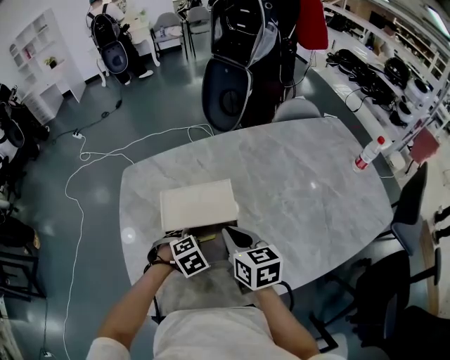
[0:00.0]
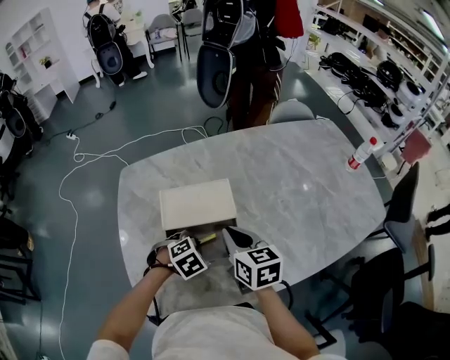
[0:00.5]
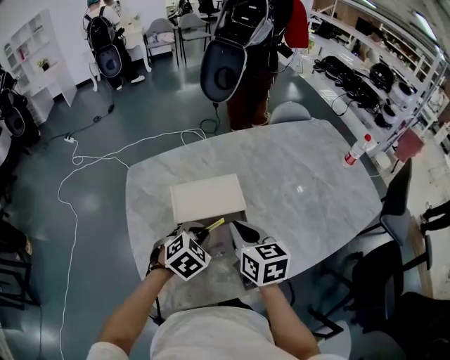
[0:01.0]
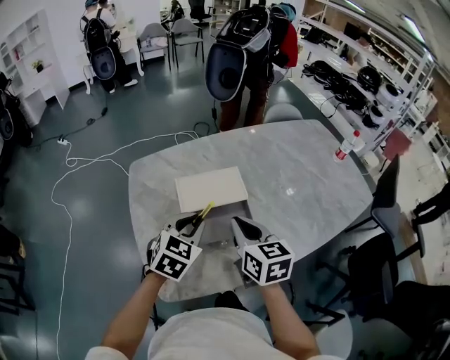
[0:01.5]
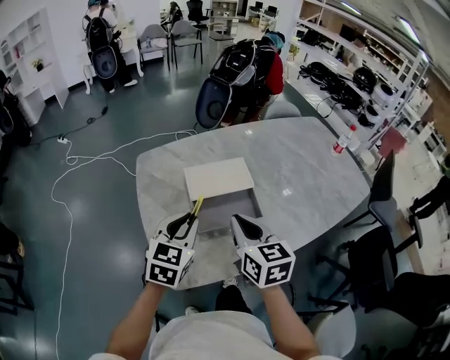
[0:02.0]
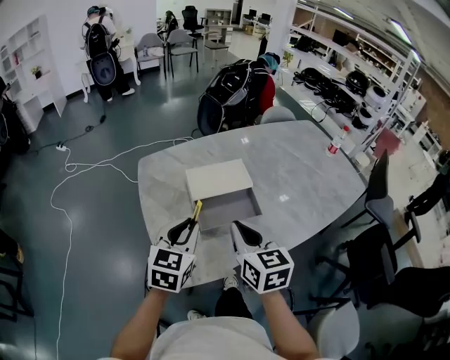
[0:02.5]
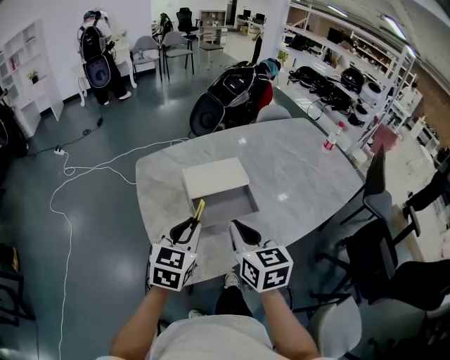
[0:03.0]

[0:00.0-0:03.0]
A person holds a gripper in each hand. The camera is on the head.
0:00.0 to 0:01.5: The left gripper moves upward, roughly 20 cm, and points its fingers some 40 degrees further upward; the right gripper moves about 10 cm.
0:01.5 to 0:03.0: Both grippers travel together backward, approximately 10 cm.

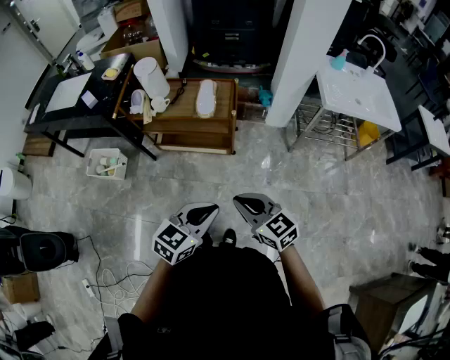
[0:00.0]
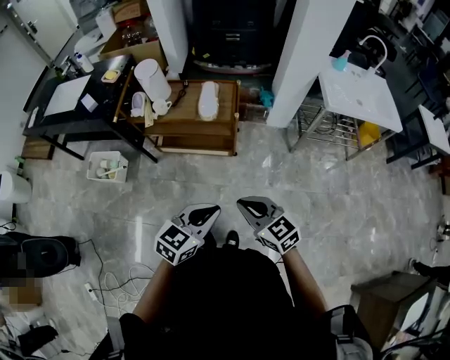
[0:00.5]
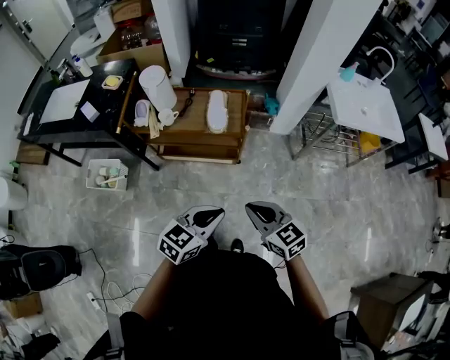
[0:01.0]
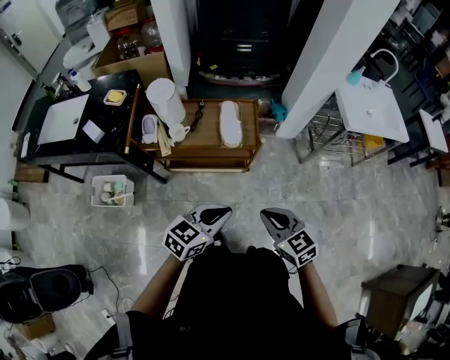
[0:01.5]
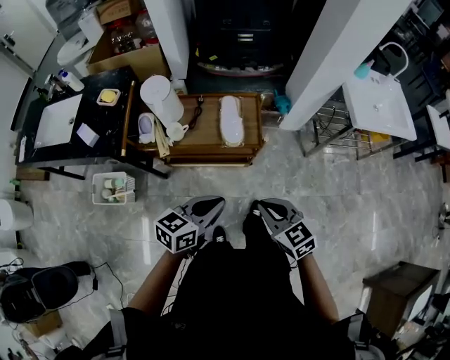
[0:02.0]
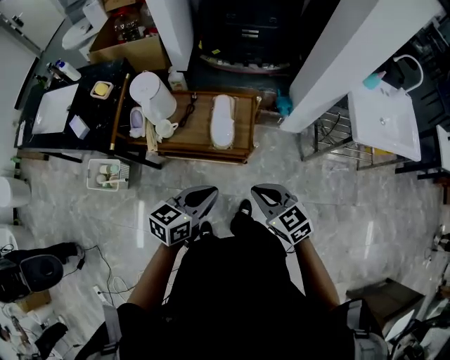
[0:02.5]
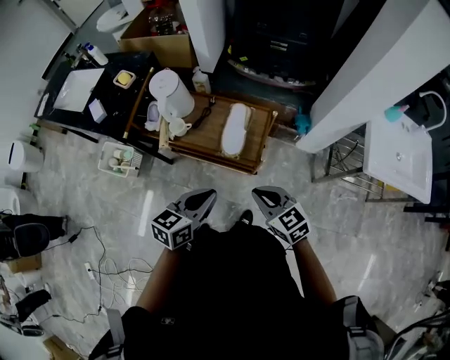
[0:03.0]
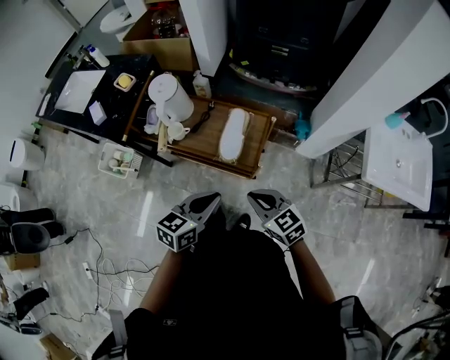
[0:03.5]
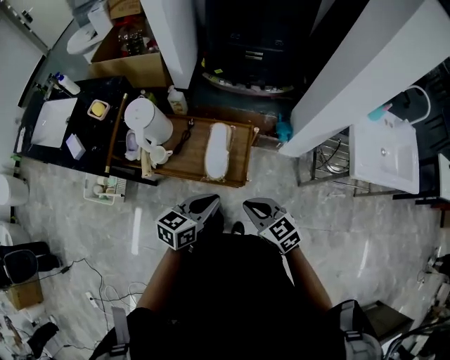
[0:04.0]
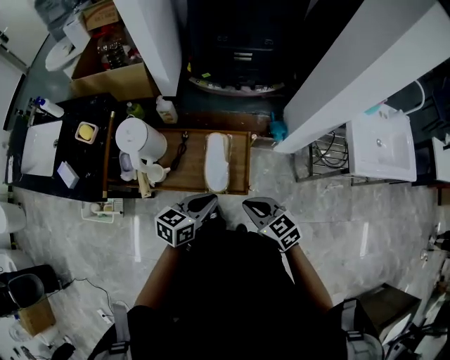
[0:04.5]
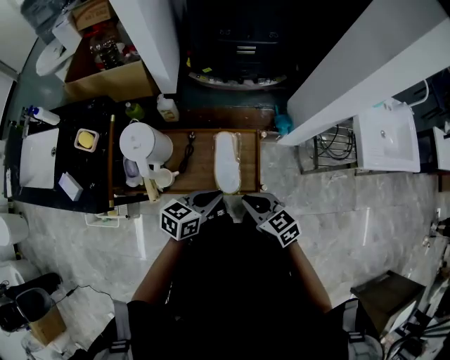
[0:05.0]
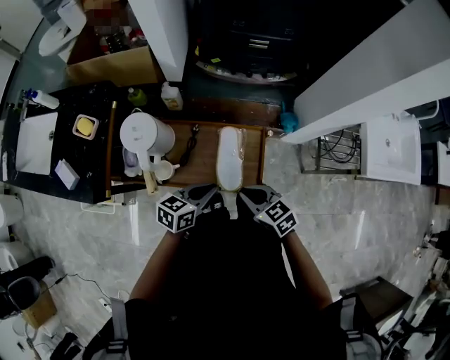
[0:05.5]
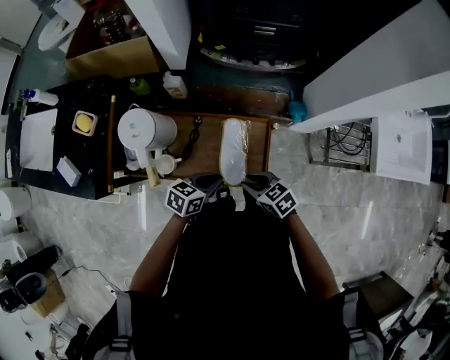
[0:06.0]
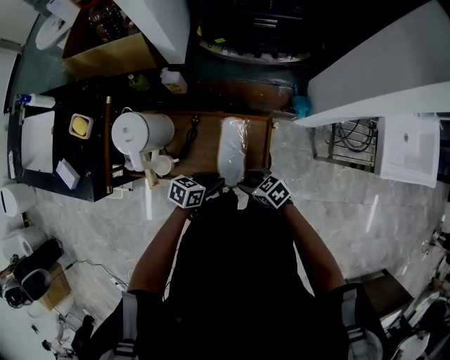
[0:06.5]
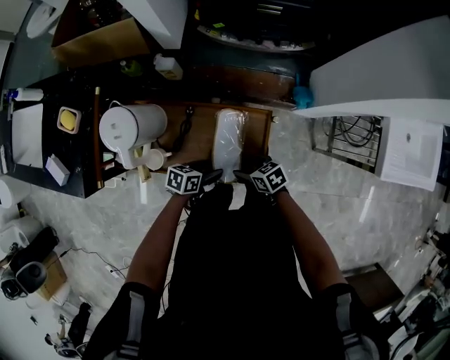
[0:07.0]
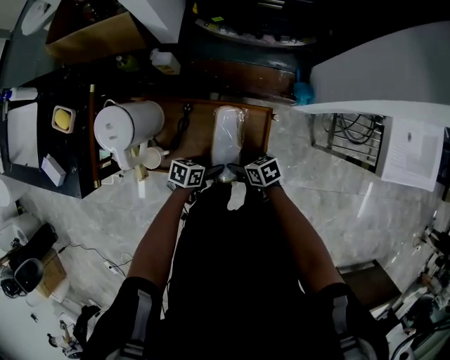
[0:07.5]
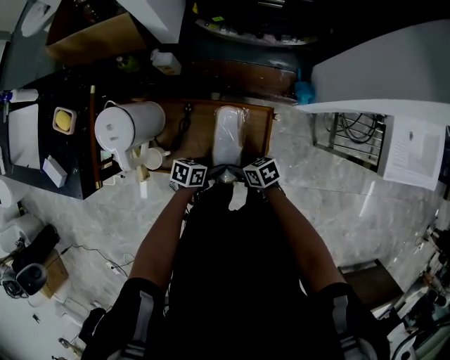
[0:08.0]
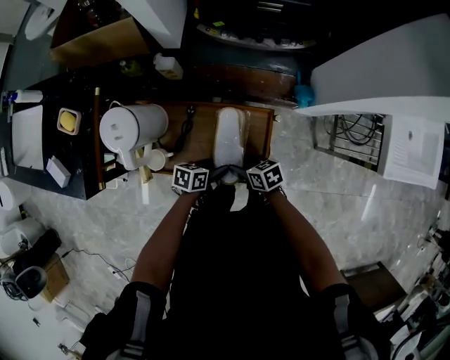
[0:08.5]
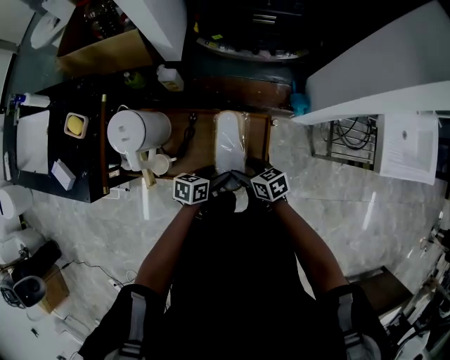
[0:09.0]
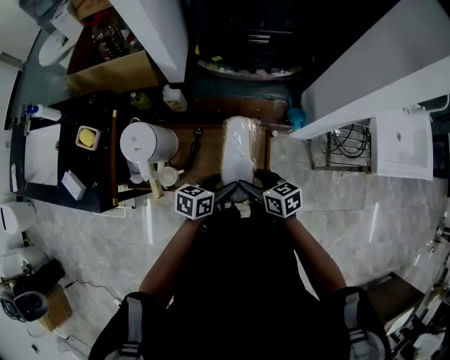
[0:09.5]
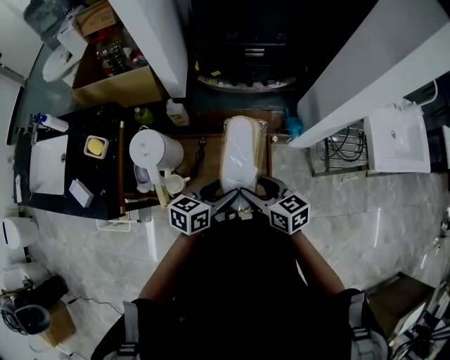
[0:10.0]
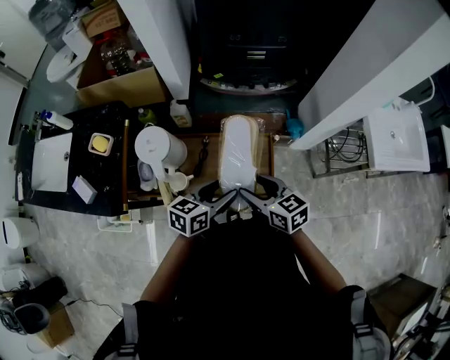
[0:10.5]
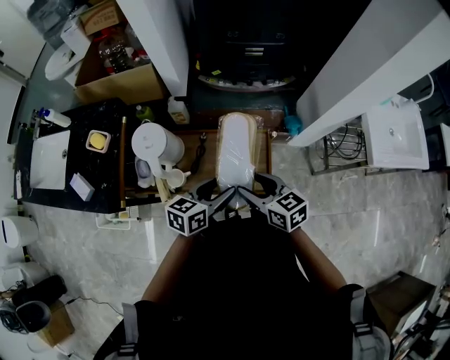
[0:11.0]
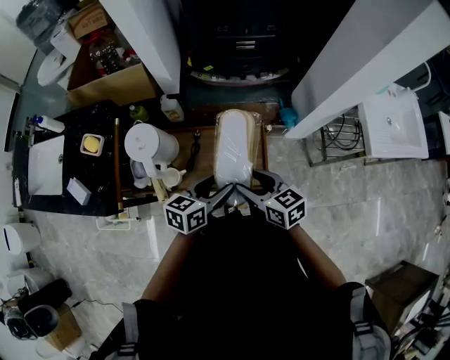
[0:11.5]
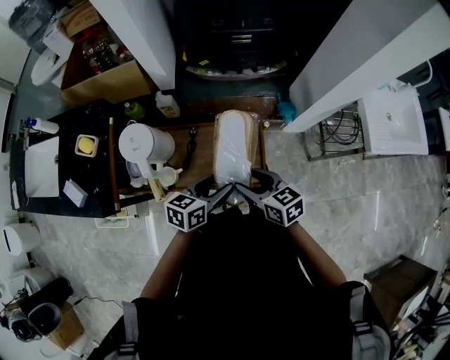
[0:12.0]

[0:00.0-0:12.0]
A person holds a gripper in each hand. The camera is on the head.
0:00.0 to 0:02.0: The grippers both shift forward and to the left by approximately 25 cm.
0:02.0 to 0:04.0: Both grippers travel together forward and to the right, some 20 cm.
0:04.0 to 0:06.0: The left gripper moves downward, approximately 15 cm, and turns by approximately 20 degrees. Meanwhile the right gripper moves about 20 cm.
0:06.0 to 0:08.0: The two grippers go some 15 cm downward. The right gripper swivels about 20 degrees, and opens its fingers, while the left gripper turns by about 20 degrees, and opens up.
0:08.0 to 0:10.0: The two grippers go approximately 25 cm upward. The right gripper swivels about 30 degrees. Meanwhile the left gripper changes its angle by some 30 degrees.
0:10.0 to 0:12.0: The grippers move only a little.

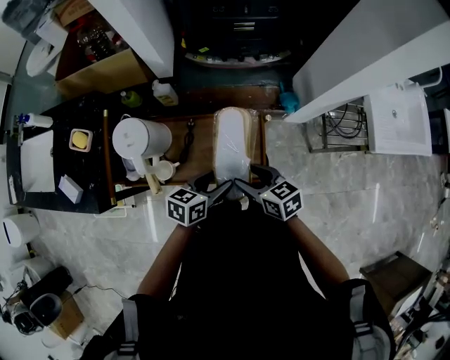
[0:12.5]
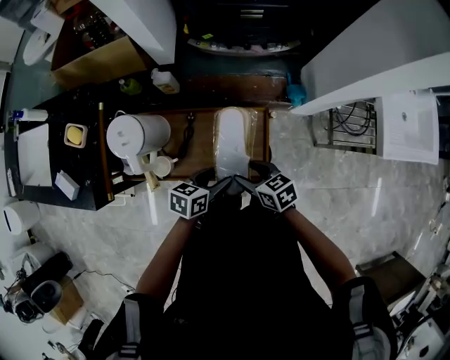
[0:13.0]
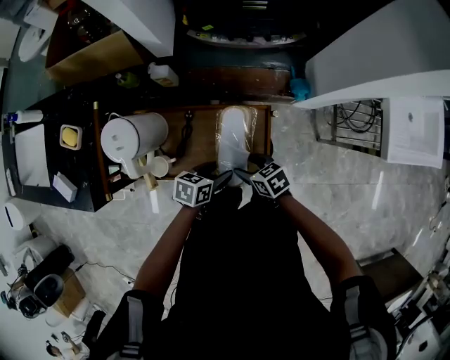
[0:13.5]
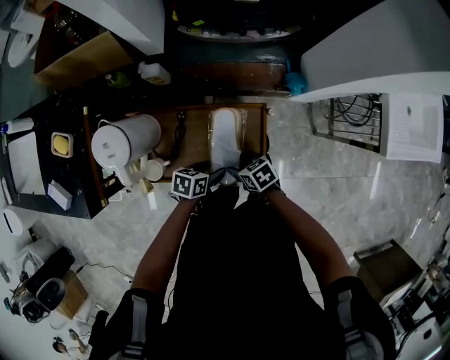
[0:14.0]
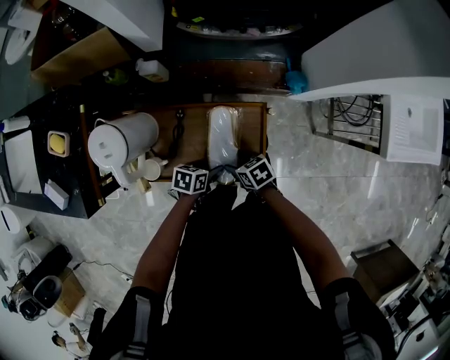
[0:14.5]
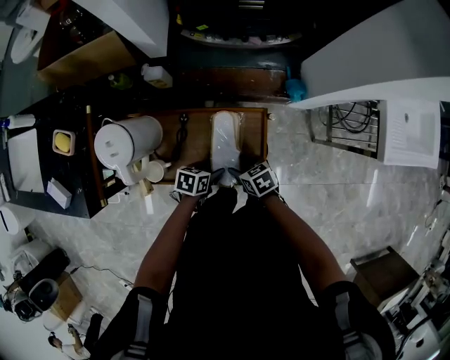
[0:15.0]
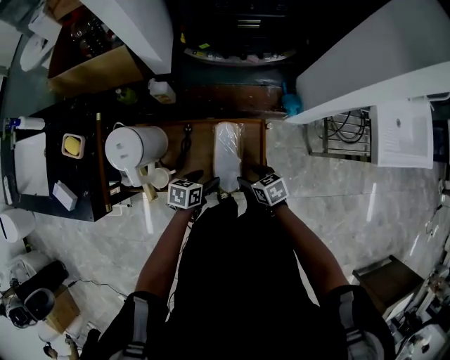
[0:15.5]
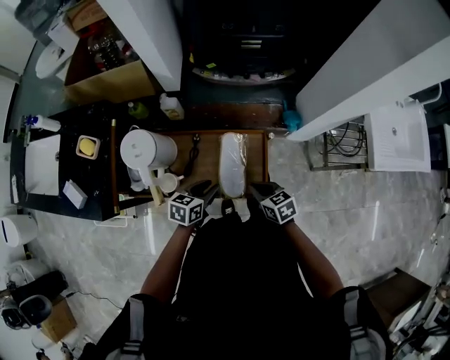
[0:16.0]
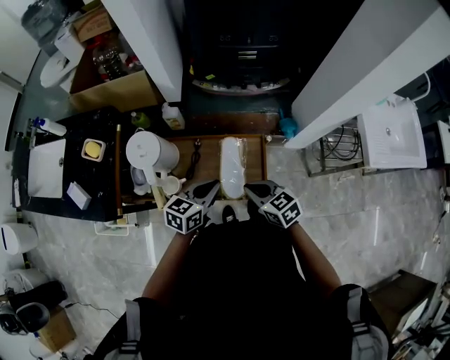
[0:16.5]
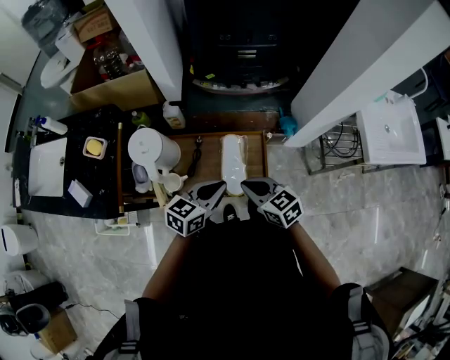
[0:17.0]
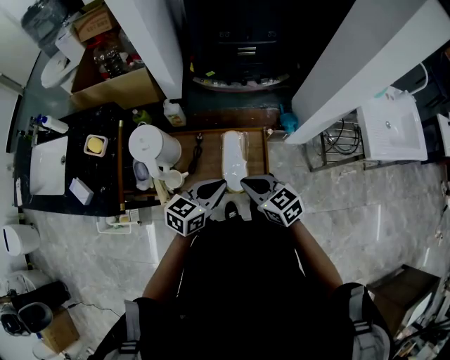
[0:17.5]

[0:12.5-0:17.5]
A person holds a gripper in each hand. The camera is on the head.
0:12.5 to 0:15.0: The grippers both shift downward by some 20 cm. The left gripper rotates about 20 degrees, while the right gripper turns by approximately 20 degrees.
0:15.0 to 0:17.5: The two grippers go some 25 cm upward. The right gripper turns by about 30 degrees, and closes its fingers. The left gripper angles its fingers upward, by roughly 30 degrees, and closes up.

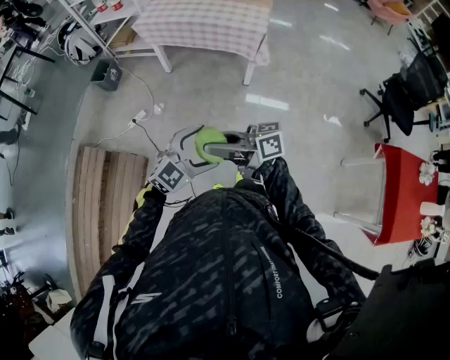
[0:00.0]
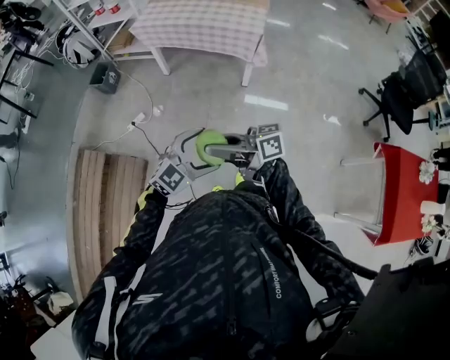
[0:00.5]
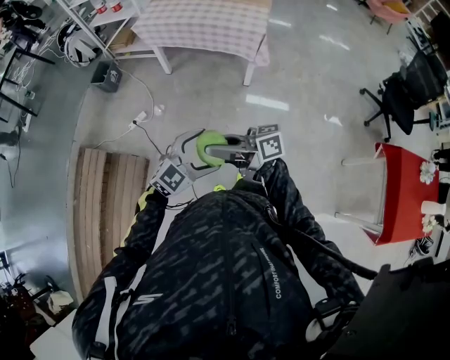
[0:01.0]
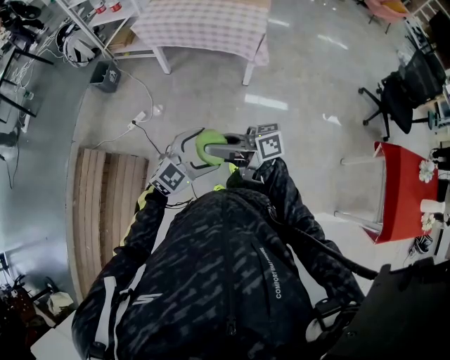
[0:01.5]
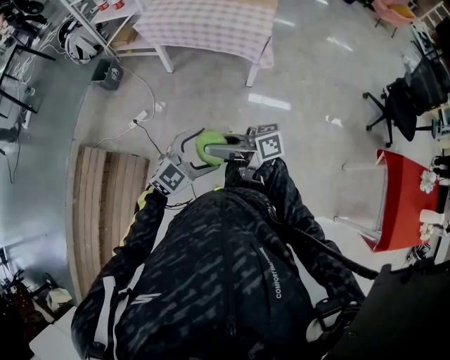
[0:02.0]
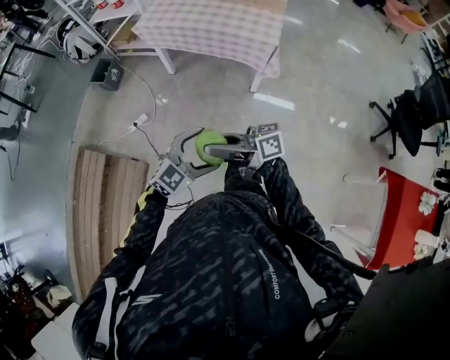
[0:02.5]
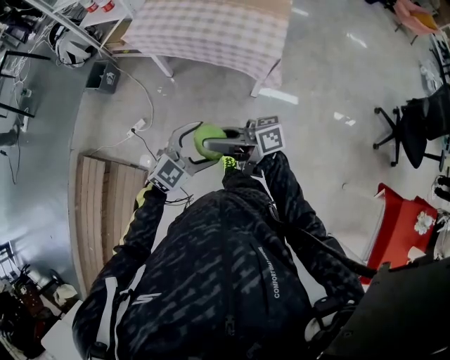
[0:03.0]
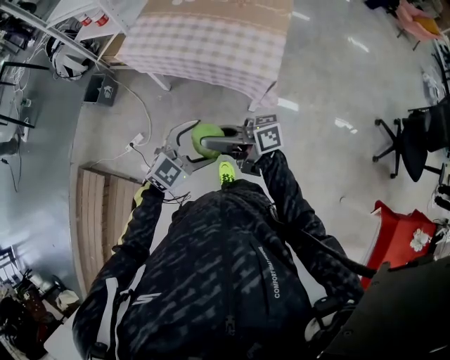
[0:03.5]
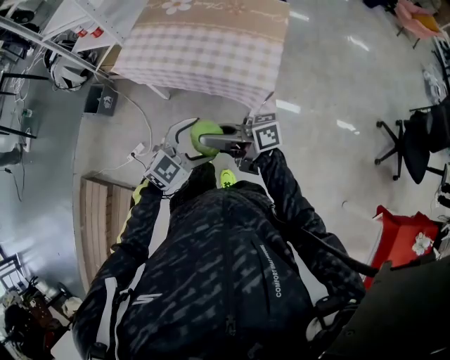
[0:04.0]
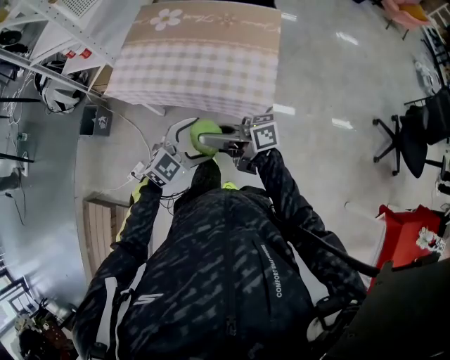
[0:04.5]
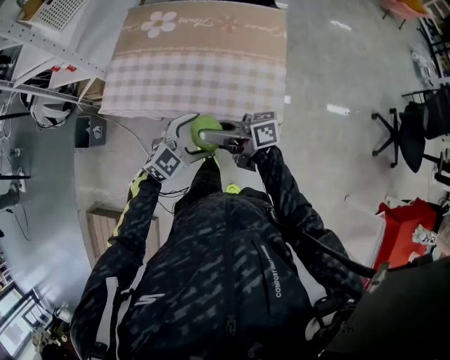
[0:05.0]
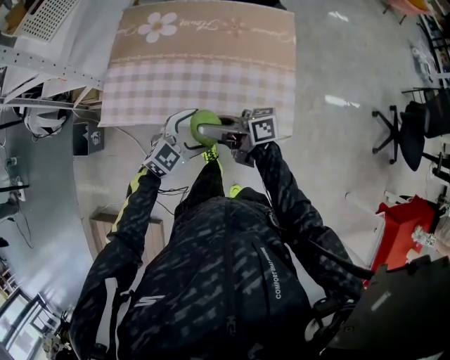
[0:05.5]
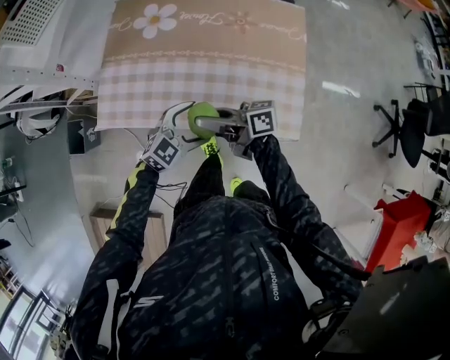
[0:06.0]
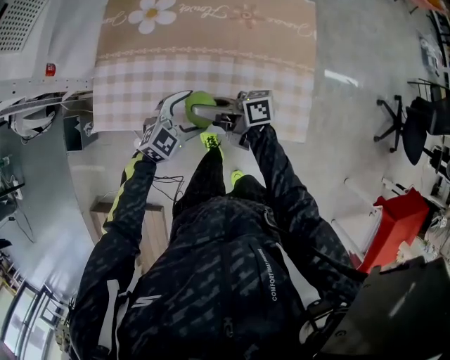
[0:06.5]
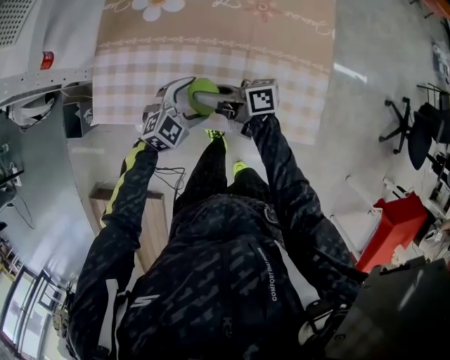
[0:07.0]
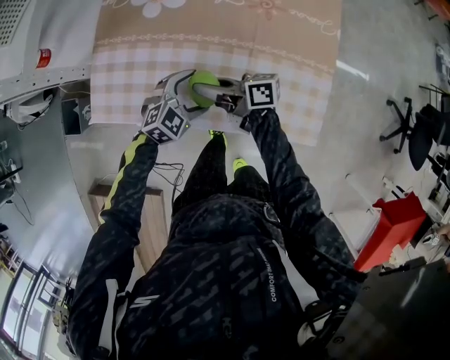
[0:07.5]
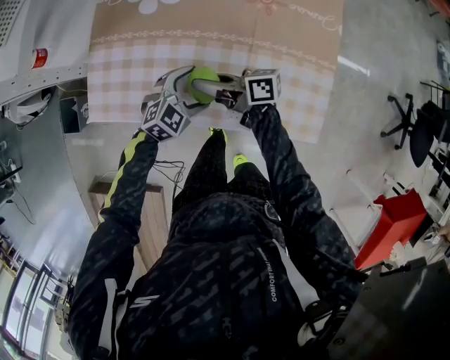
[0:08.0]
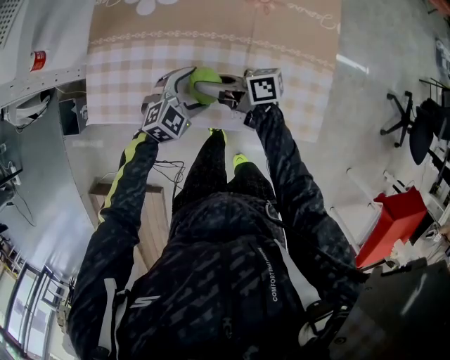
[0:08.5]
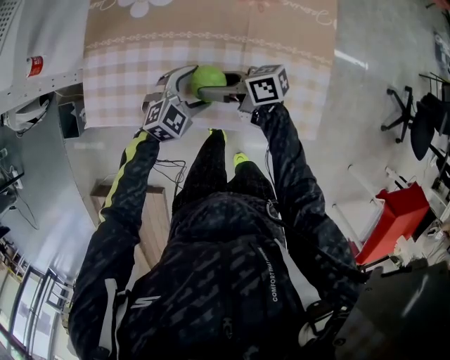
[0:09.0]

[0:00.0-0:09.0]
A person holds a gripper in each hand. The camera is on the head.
0:00.0 to 0:02.0: The grippers make only small movements.
0:02.0 to 0:04.5: The two grippers travel together, roughly 50 cm.
0:04.5 to 0:07.0: The right gripper changes place by some 40 cm. Meanwhile the left gripper changes place by roughly 40 cm.
0:07.0 to 0:09.0: The right gripper moves approximately 5 cm, and opens up.
